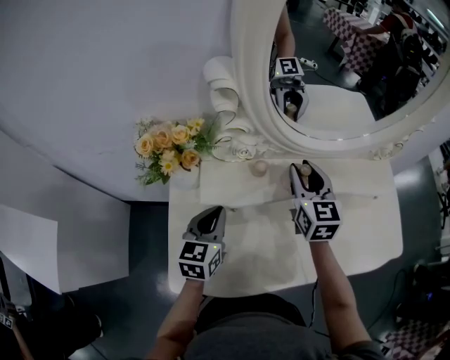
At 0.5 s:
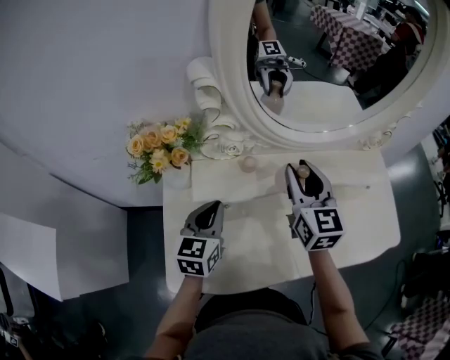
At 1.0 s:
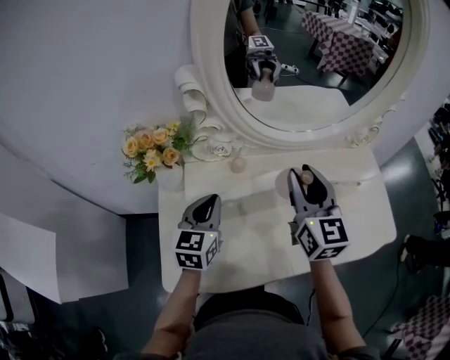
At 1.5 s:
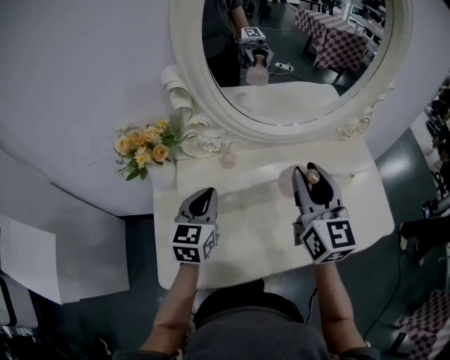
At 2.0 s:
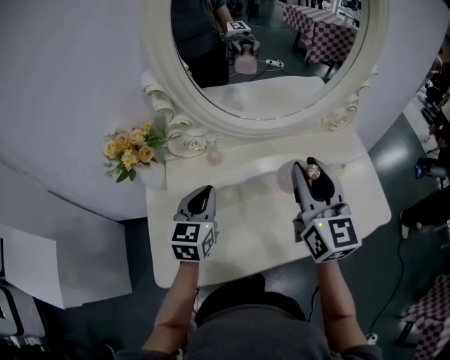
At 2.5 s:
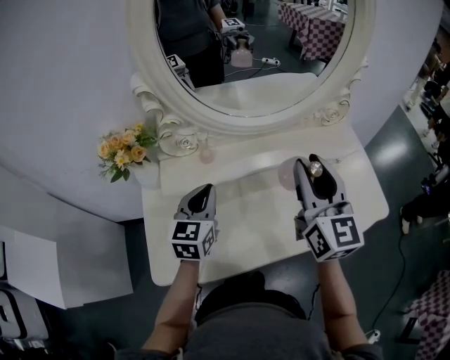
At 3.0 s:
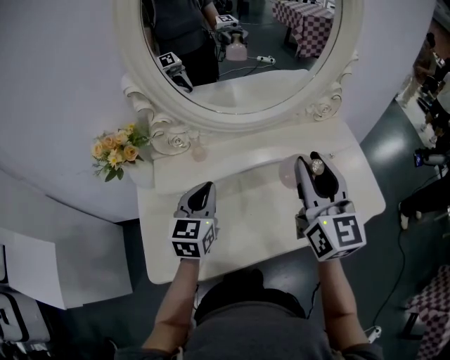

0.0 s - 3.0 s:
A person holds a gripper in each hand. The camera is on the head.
0.0 s - 1.5 s: The left gripper goes some 10 cm upward and to the right. The right gripper goes some 15 cm upward, backward and to the right.
1.5 s - 3.0 s: The two grippers go approximately 10 cm to the right.

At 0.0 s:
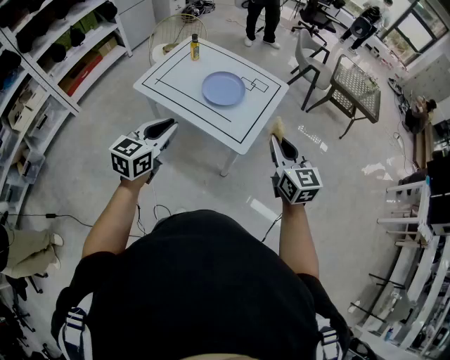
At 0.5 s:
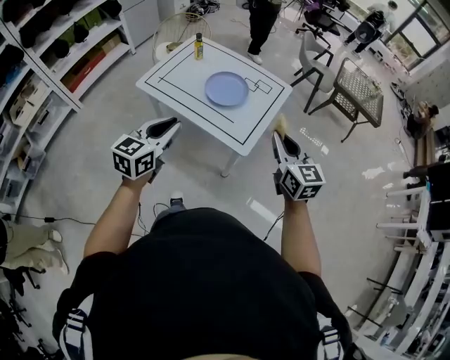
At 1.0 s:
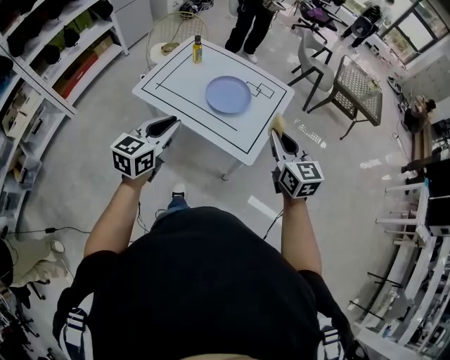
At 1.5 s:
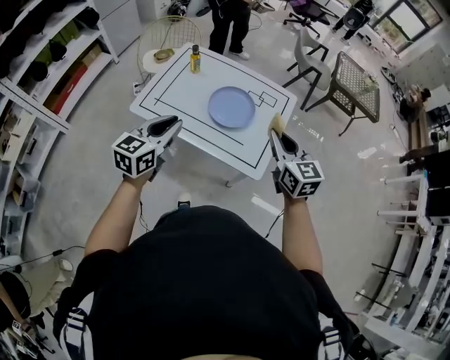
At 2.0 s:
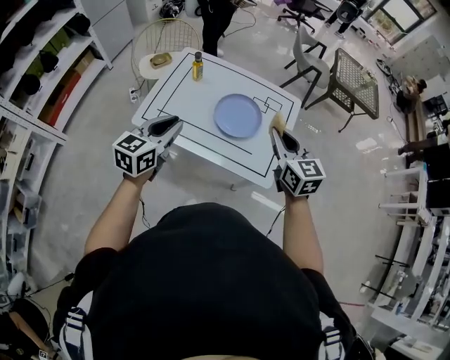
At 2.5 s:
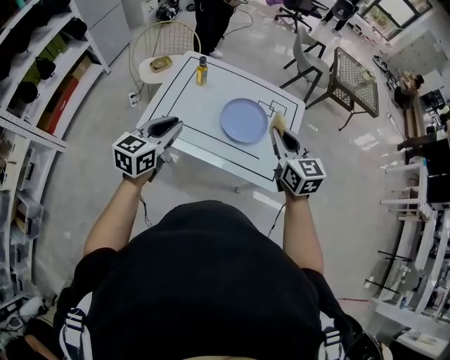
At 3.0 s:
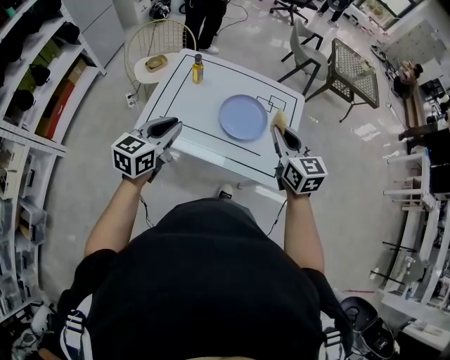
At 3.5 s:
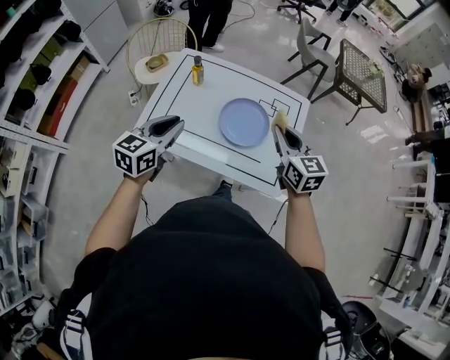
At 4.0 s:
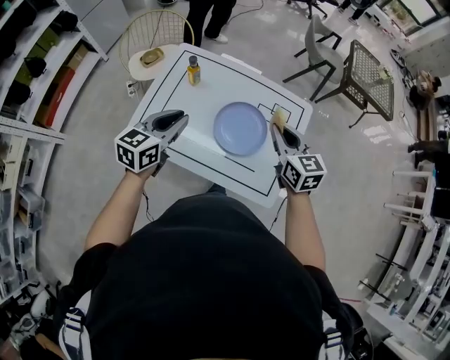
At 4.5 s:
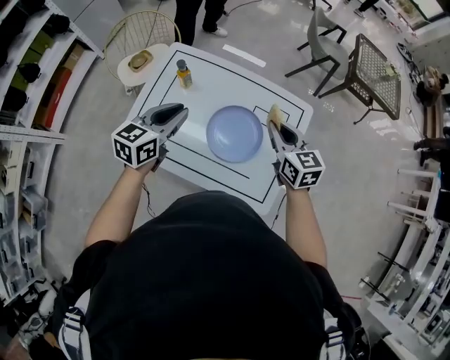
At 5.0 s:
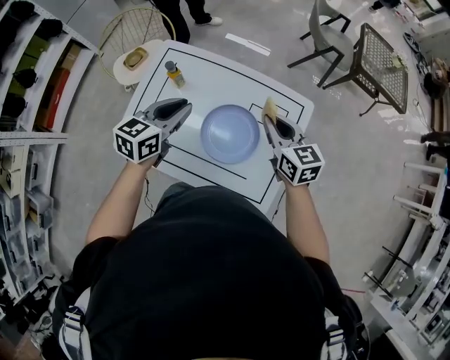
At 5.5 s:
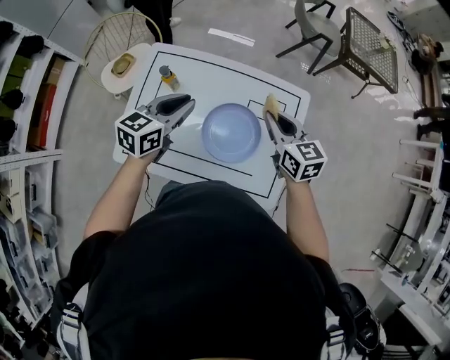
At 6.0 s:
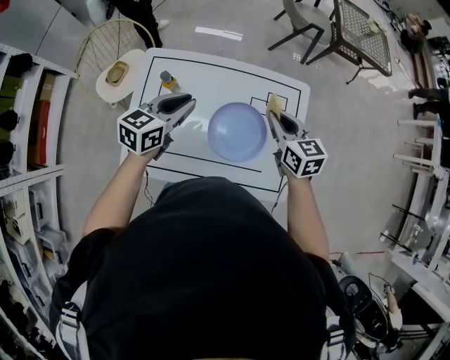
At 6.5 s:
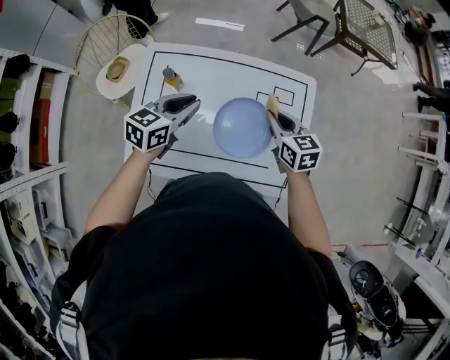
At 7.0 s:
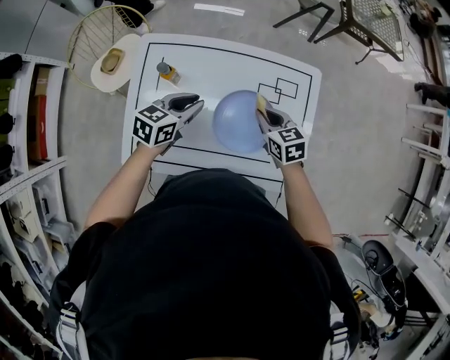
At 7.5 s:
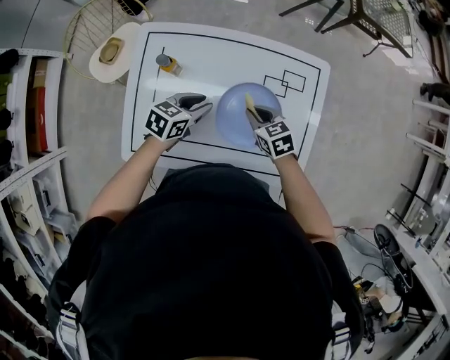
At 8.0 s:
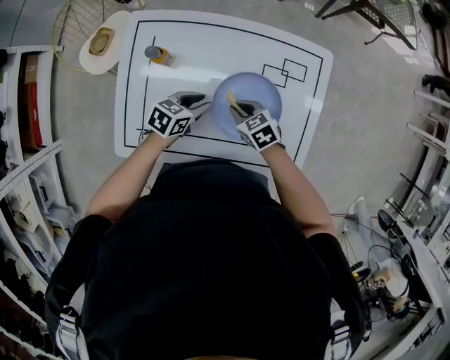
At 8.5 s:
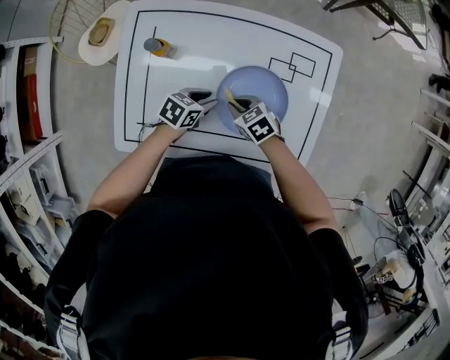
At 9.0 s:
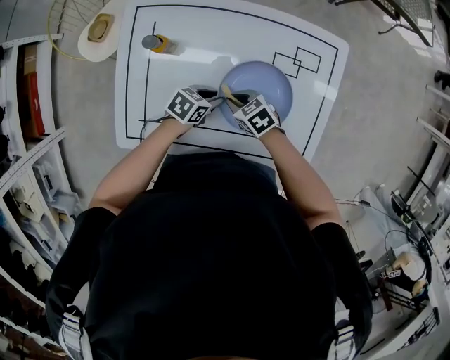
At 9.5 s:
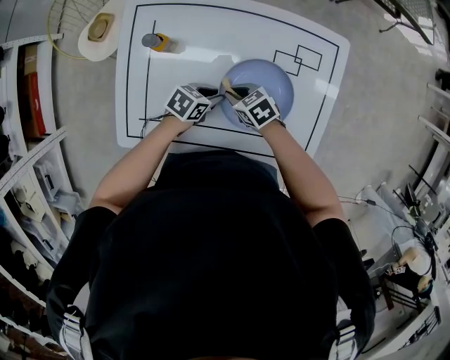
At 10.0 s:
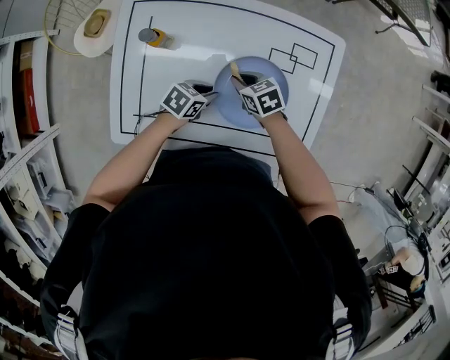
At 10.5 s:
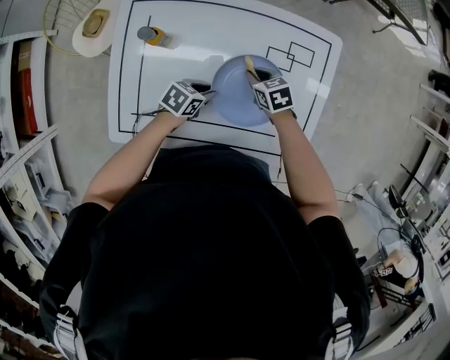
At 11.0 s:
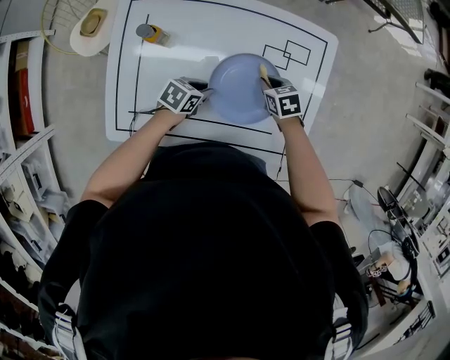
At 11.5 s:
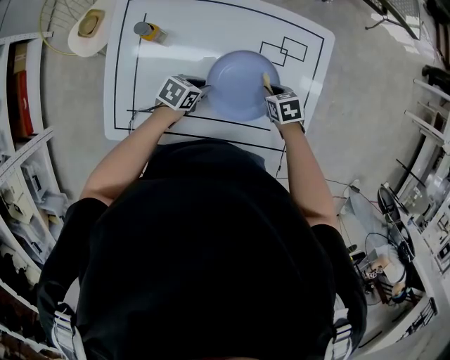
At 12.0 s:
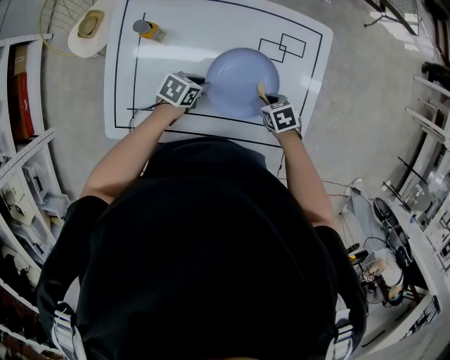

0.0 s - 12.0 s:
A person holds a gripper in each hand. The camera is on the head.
0.0 s - 2.0 s: The two grippers go roughly 25 cm forward and to the left.
2.0 s - 4.0 s: The left gripper shifts some 15 cm forward. The right gripper heads forward and downward, covering some 15 cm.
4.0 s - 6.0 s: The right gripper is displaced forward and downward by some 10 cm. The left gripper shifts some 15 cm forward.
6.0 s - 8.0 s: Both grippers move downward, about 25 cm. The right gripper changes its angle by about 30 degrees. Meanwhile the left gripper swivels some 30 degrees.
8.0 s - 10.0 s: The left gripper shifts approximately 5 cm downward. The right gripper changes place by approximately 5 cm.
10.0 s - 12.0 s: The right gripper changes place by roughly 15 cm.

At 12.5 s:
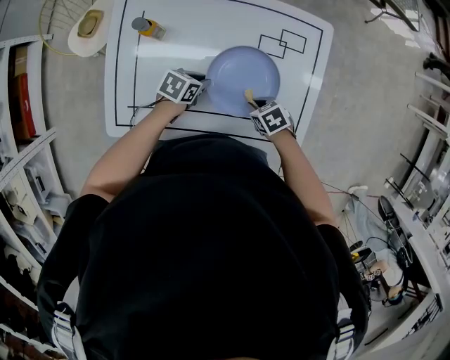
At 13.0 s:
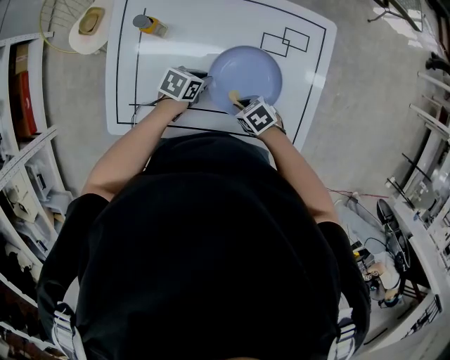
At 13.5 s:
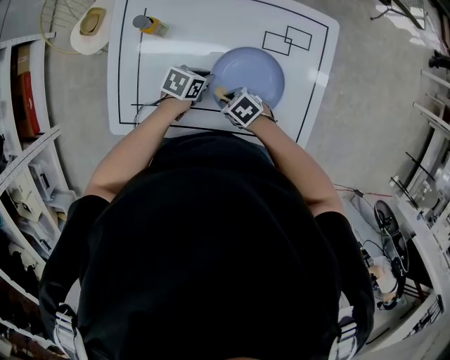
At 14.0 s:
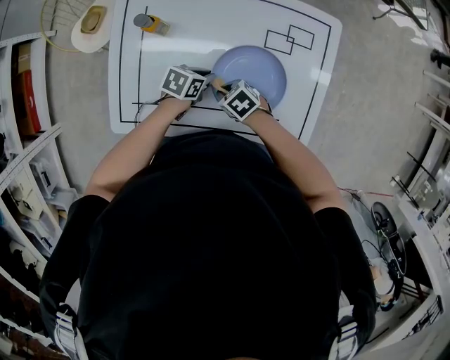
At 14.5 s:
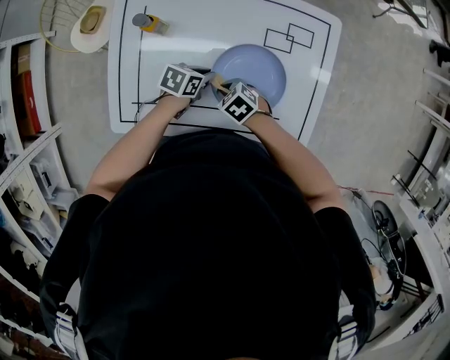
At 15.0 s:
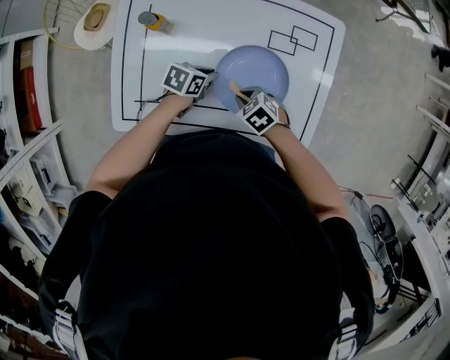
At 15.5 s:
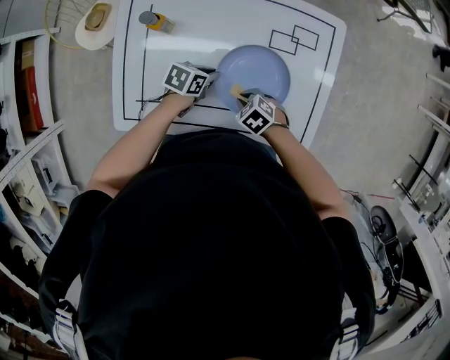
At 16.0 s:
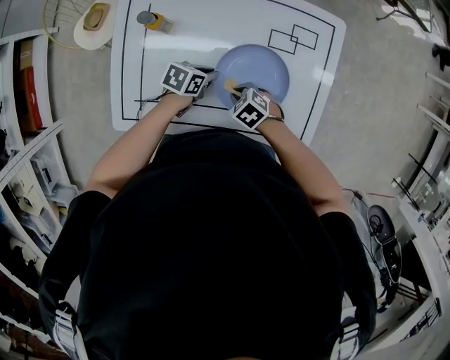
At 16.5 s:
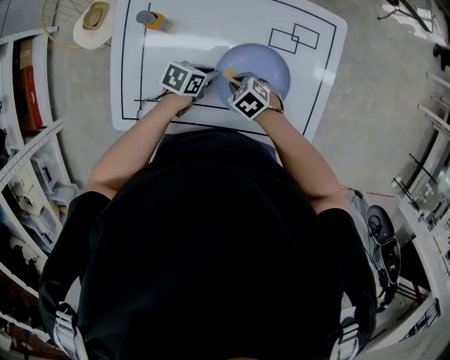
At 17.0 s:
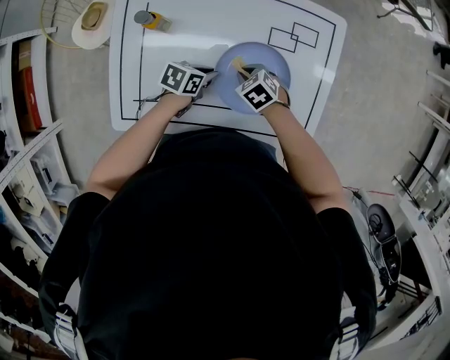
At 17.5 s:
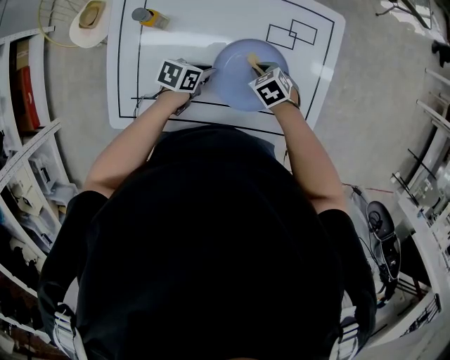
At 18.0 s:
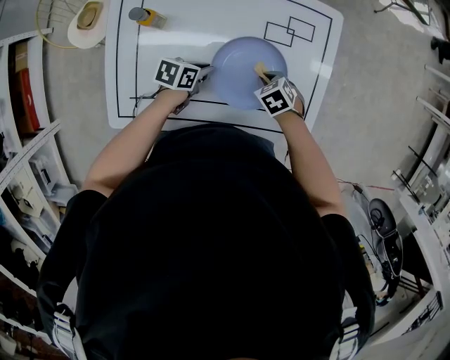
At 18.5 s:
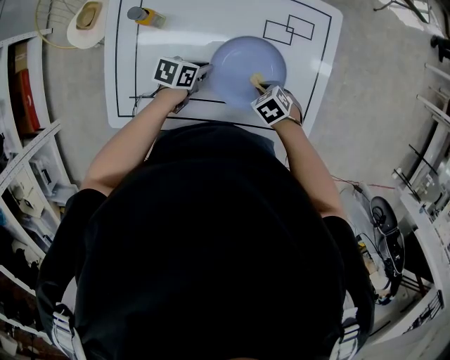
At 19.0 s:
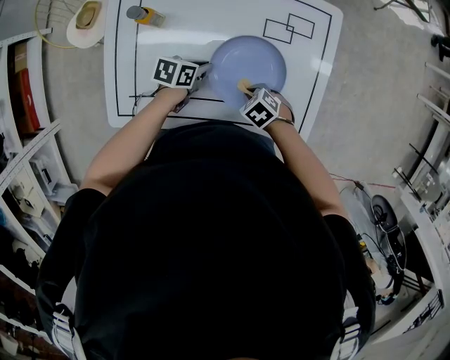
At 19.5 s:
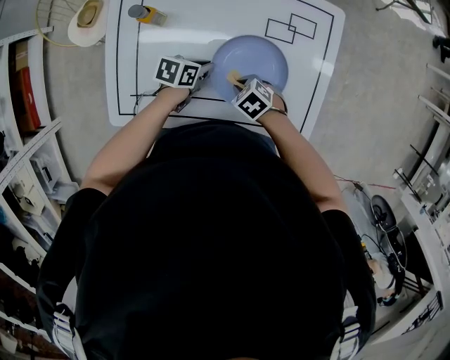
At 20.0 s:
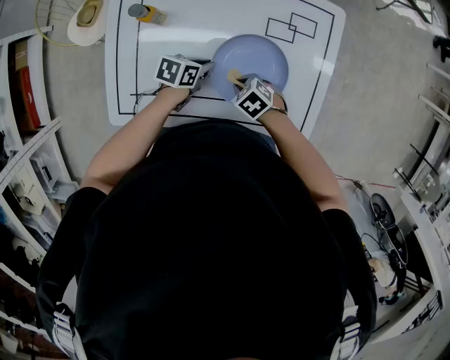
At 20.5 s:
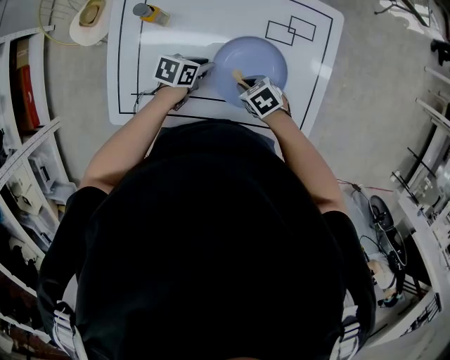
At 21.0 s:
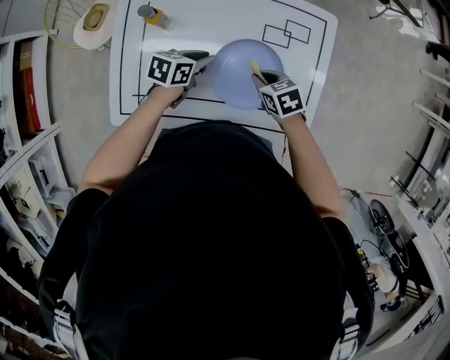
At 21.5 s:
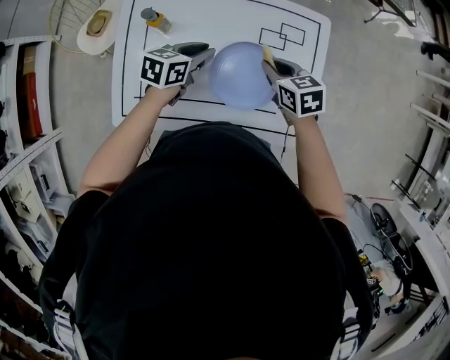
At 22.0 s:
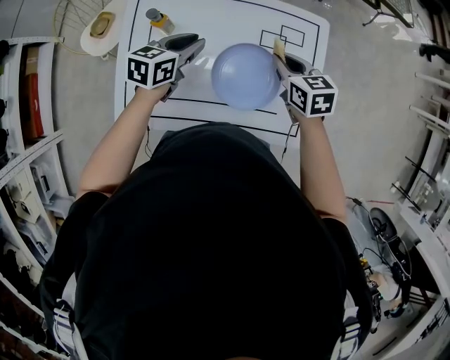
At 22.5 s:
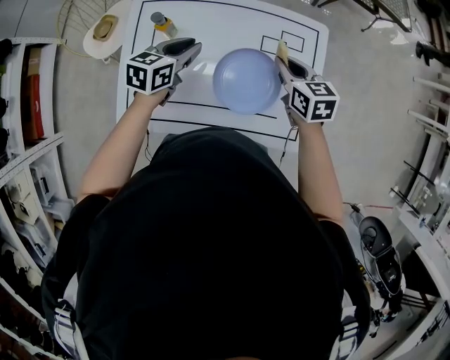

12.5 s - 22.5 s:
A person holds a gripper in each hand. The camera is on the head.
12.5 s - 14.5 s: The right gripper moves some 15 cm.
16.5 s - 18.5 s: The right gripper shifts by some 10 cm.
18.5 s - 20.5 s: The right gripper moves roughly 5 cm.
20.5 s - 22.5 s: Both grippers travel together upward, about 20 cm. The left gripper swivels approximately 30 degrees. The right gripper changes its angle by roughly 40 degrees.

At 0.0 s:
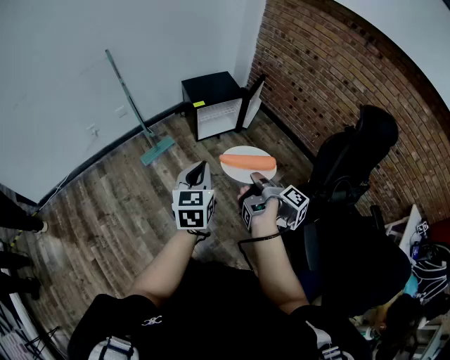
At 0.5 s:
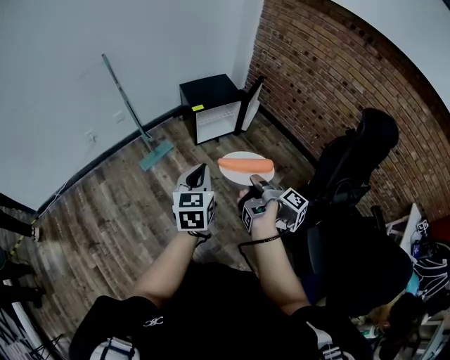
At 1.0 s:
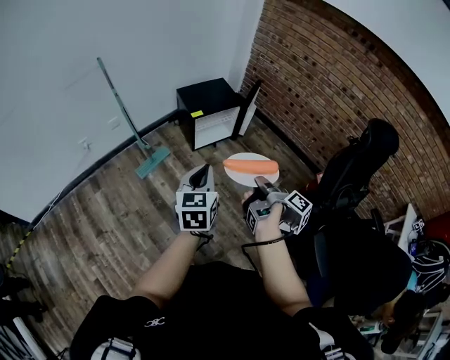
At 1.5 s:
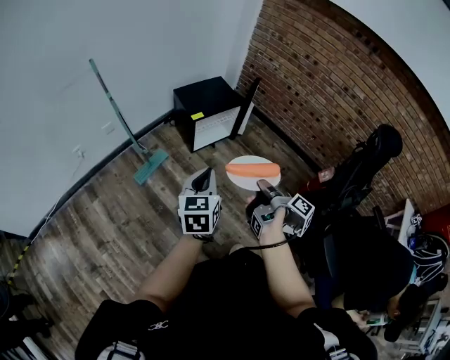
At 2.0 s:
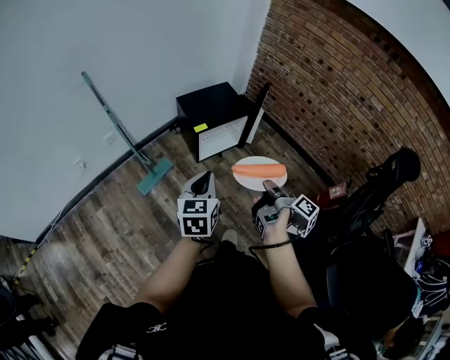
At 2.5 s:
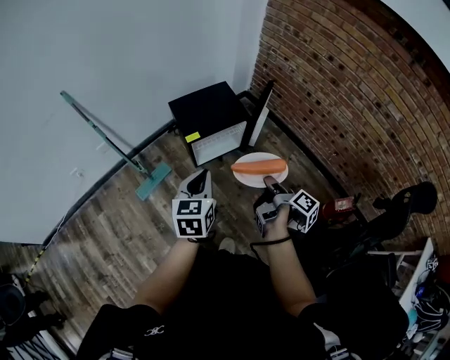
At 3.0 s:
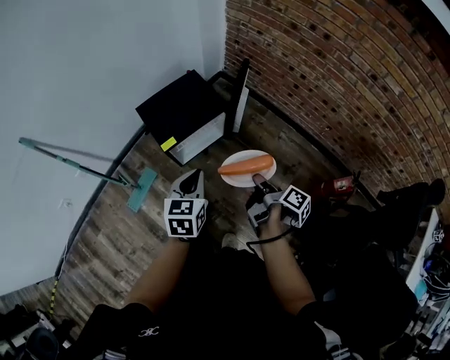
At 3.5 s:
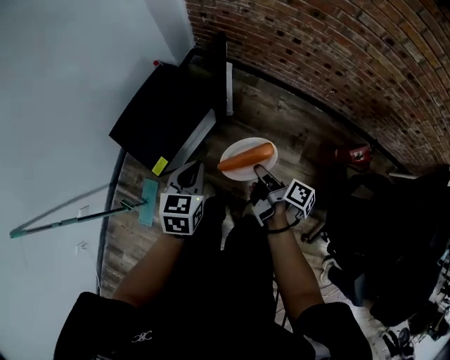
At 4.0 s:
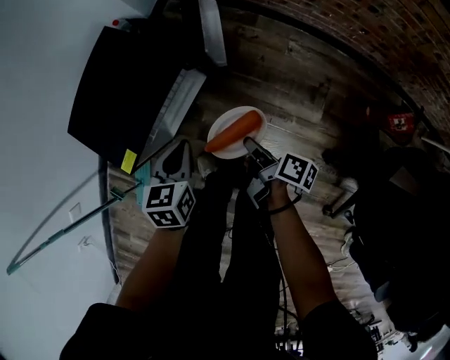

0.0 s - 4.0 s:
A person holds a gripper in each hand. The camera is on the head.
0.0 s - 2.0 s: The left gripper changes place by approximately 25 cm.
2.0 s - 4.0 s: The left gripper shifts by roughly 60 cm, and turns by some 30 degrees.
